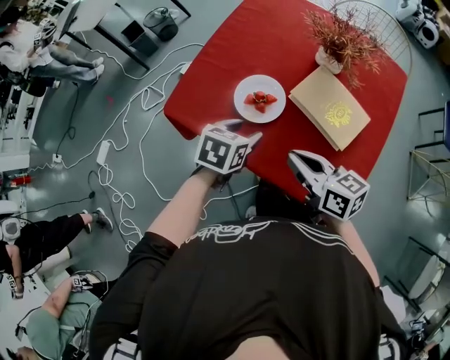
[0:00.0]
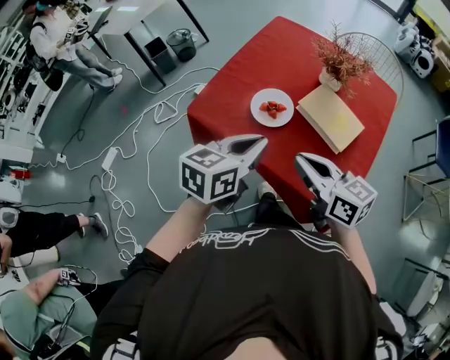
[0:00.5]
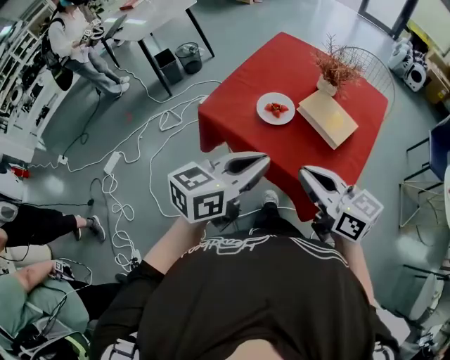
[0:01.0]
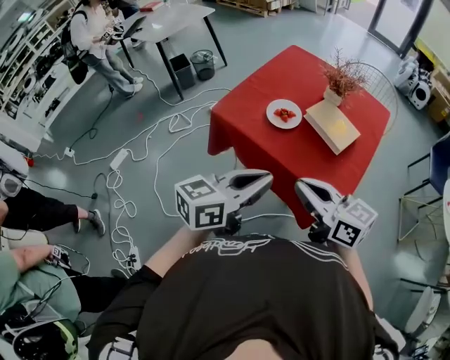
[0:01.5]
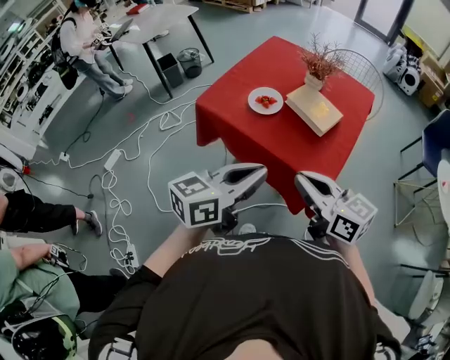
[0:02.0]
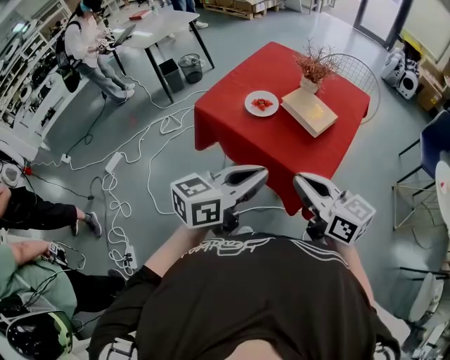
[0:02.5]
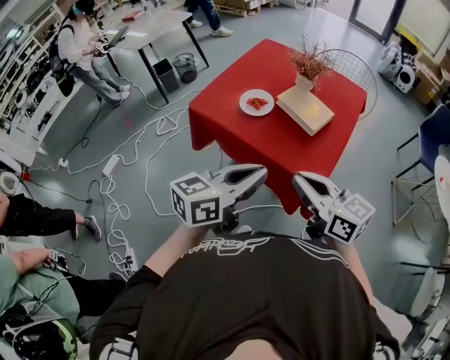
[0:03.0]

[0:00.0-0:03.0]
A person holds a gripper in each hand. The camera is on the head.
0:00.0 to 0:01.5: The two grippers go approximately 30 cm backward and upward. The left gripper points its fingers some 40 degrees further upward, and closes.
0:01.5 to 0:03.0: The grippers both shift to the right by roughly 10 cm.

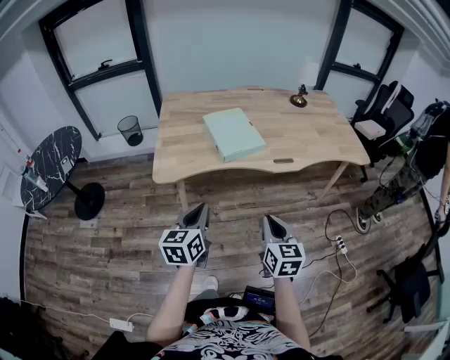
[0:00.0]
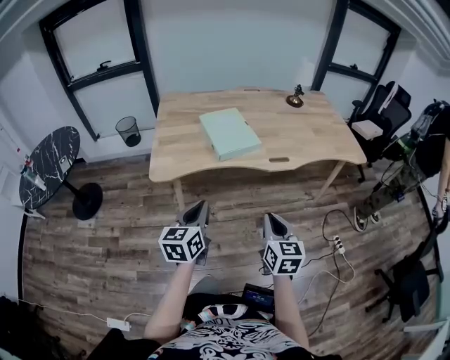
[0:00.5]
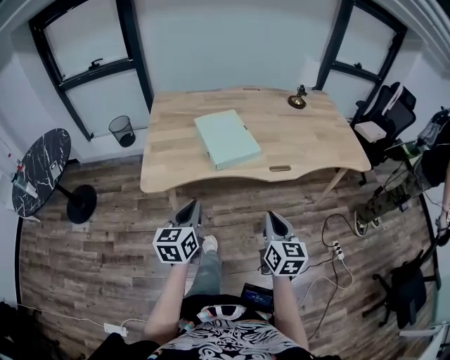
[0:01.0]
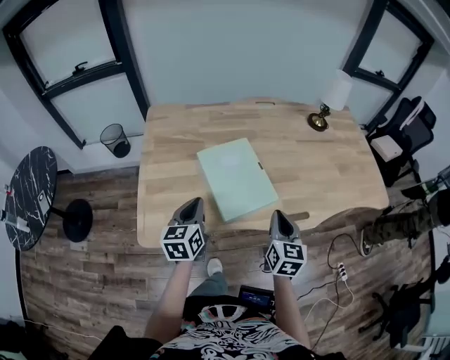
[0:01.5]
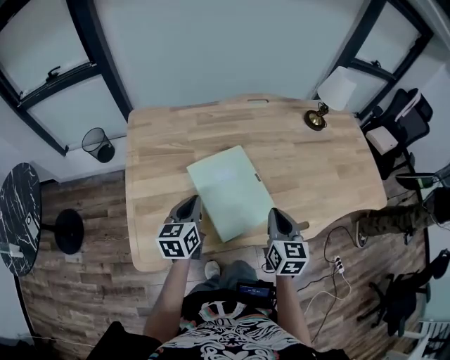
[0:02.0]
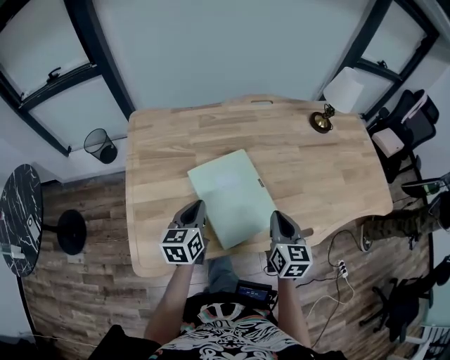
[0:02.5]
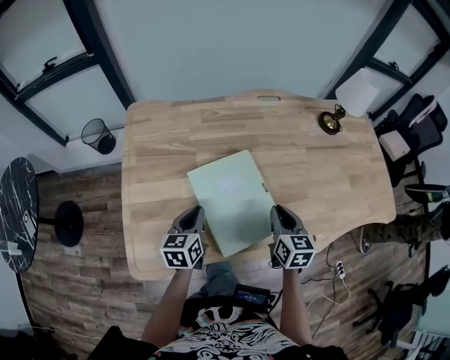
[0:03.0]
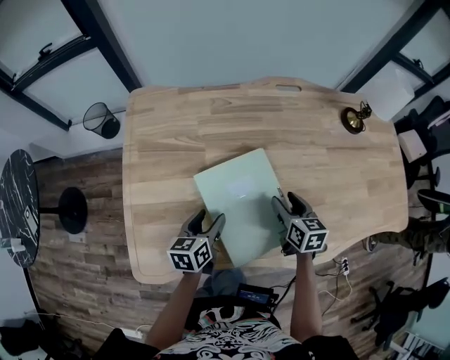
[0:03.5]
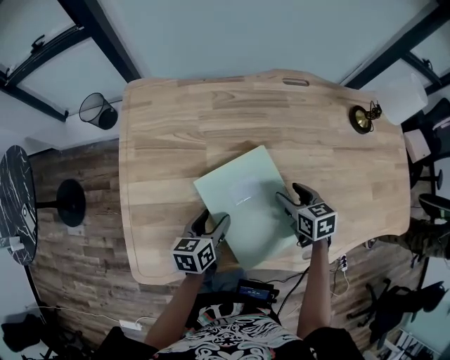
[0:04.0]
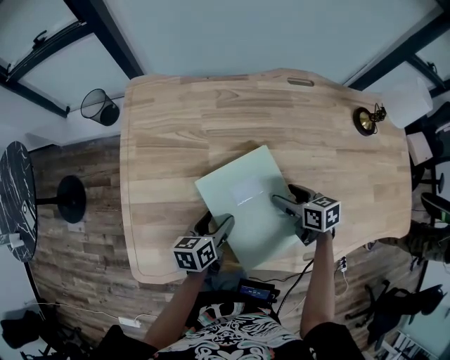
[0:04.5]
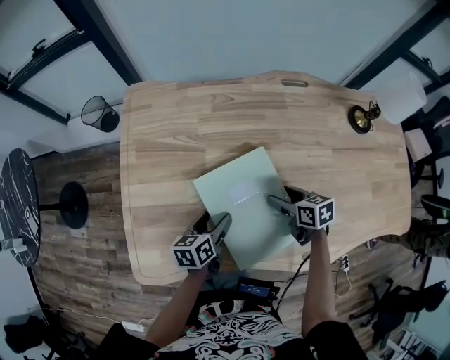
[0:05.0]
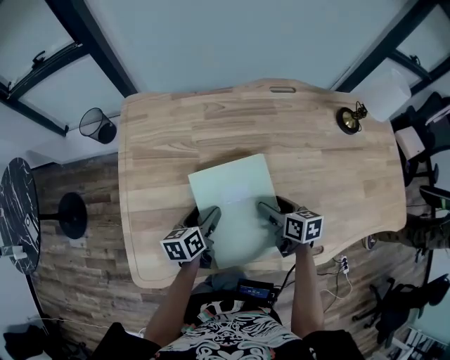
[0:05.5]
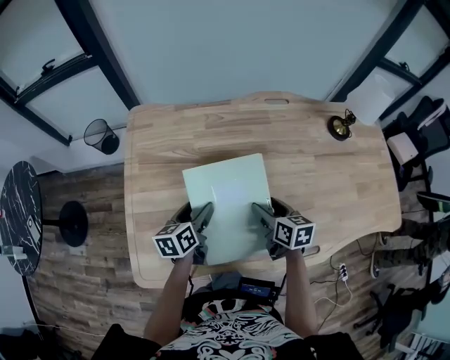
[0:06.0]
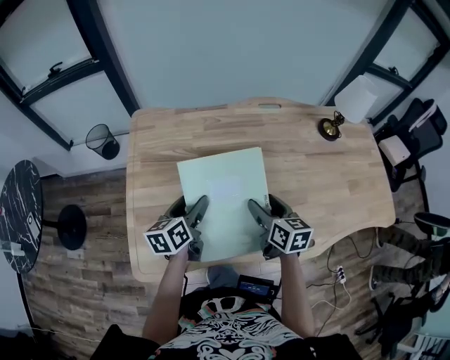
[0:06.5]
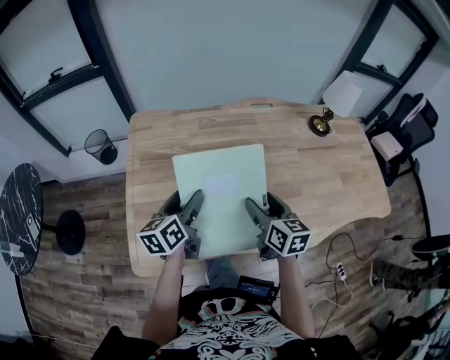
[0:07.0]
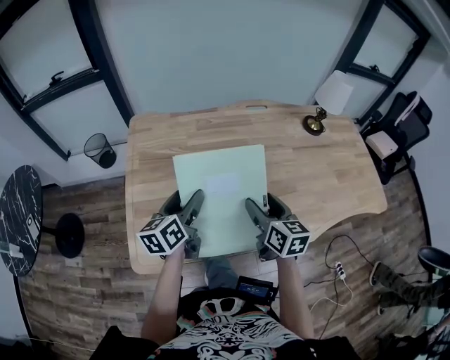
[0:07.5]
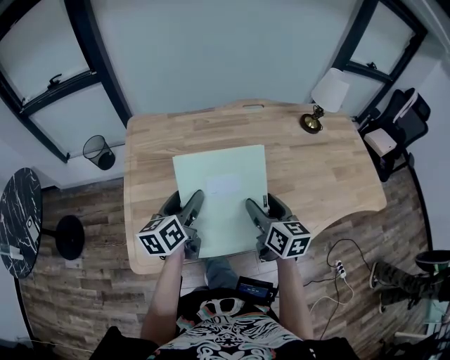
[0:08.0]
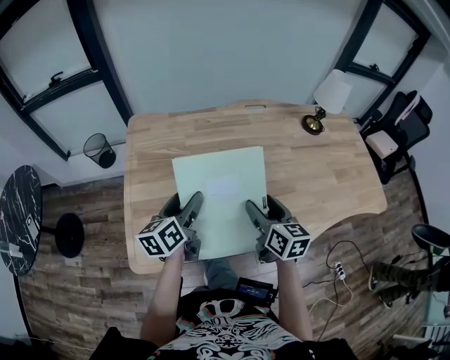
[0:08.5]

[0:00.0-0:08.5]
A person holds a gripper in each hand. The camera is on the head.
0:00.0 to 0:02.0: The two grippers travel together, forward, approximately 40 cm.
0:02.0 to 0:04.0: The left gripper is displaced downward by about 15 cm, turns by about 20 degrees, and opens. The right gripper heads forward and downward, covering about 20 cm, changes its angle by roughly 40 degrees, and opens.
0:04.0 to 0:06.5: The left gripper shifts roughly 10 cm upward; the right gripper heads upward, backward and to the left, covering about 15 cm, and rotates some 20 degrees.
0:06.5 to 0:08.5: The right gripper moves backward and upward, approximately 10 cm; the left gripper travels upward and backward by approximately 10 cm.

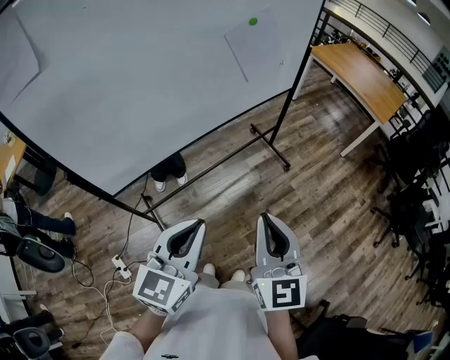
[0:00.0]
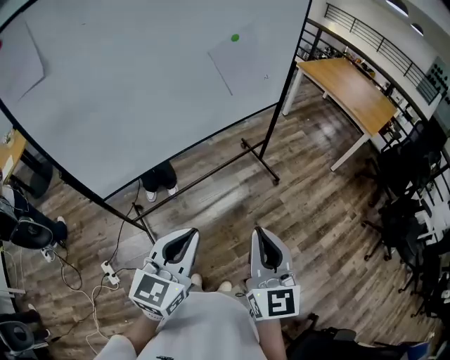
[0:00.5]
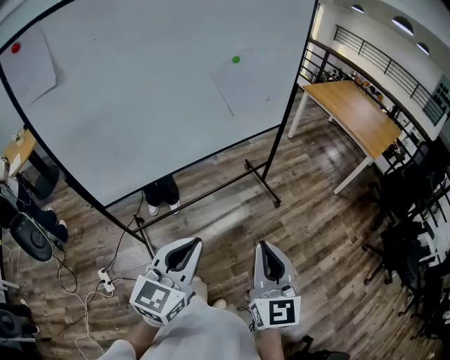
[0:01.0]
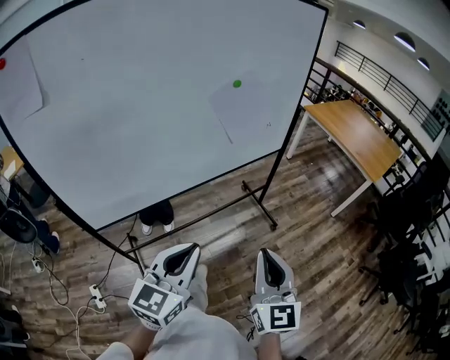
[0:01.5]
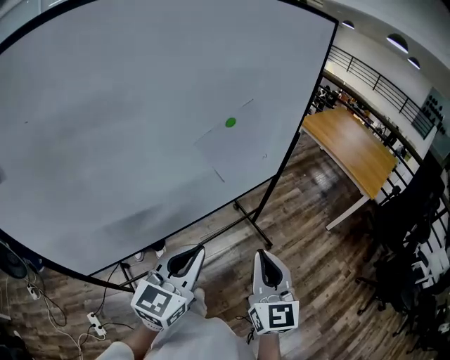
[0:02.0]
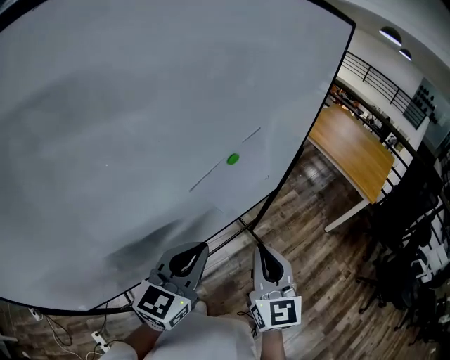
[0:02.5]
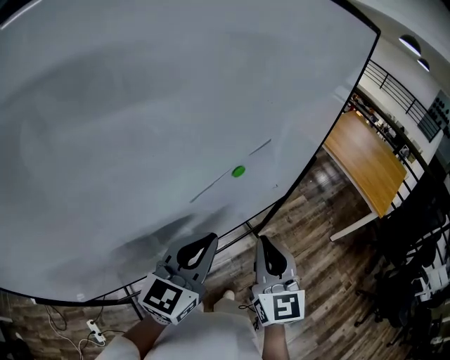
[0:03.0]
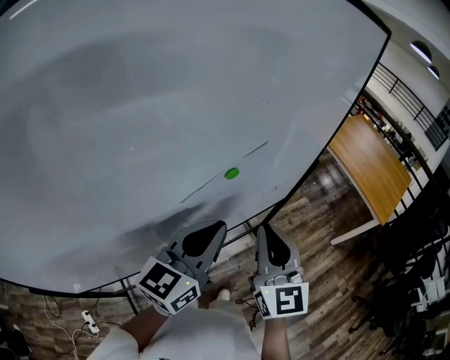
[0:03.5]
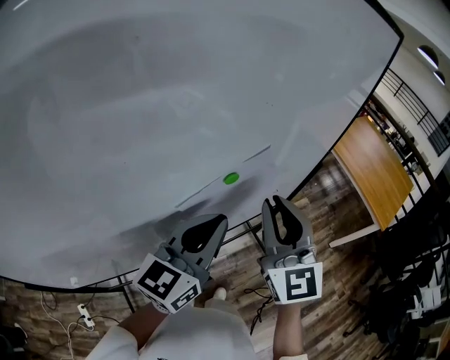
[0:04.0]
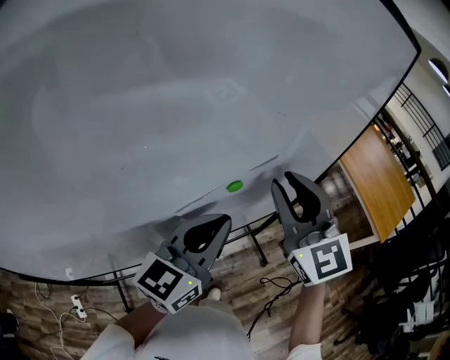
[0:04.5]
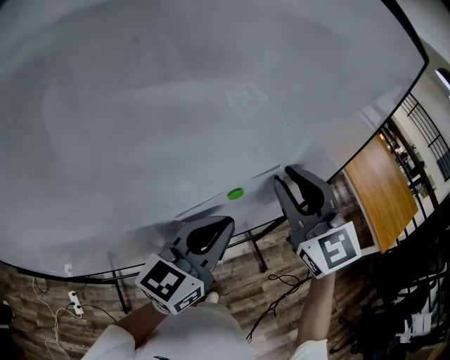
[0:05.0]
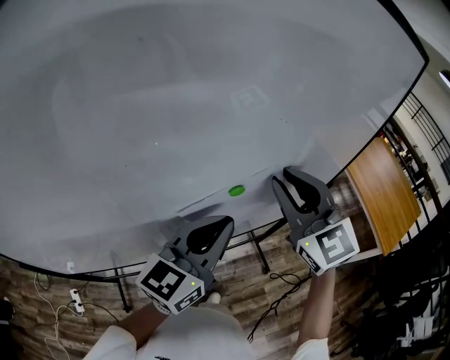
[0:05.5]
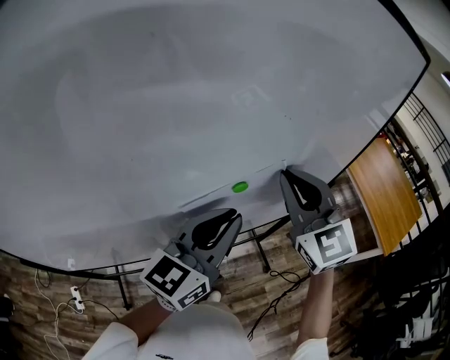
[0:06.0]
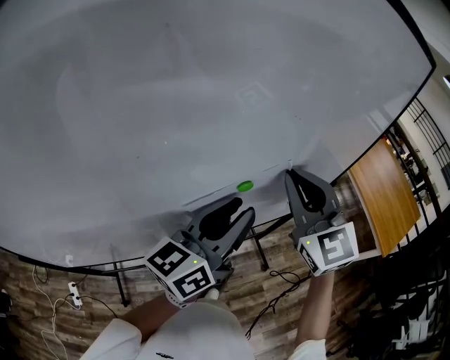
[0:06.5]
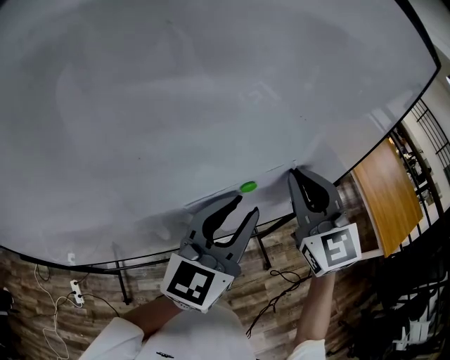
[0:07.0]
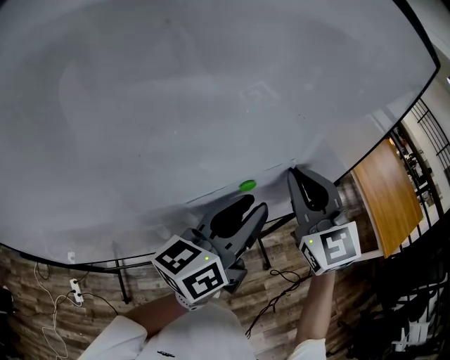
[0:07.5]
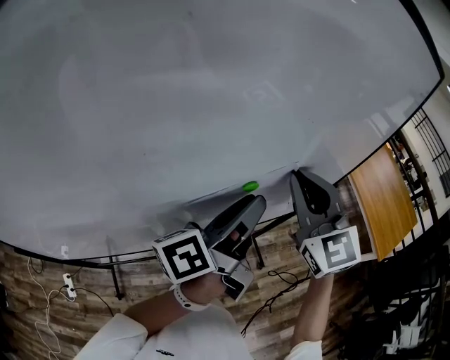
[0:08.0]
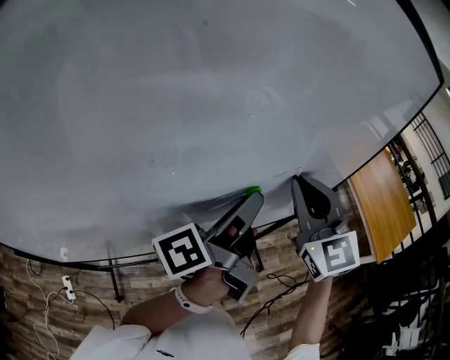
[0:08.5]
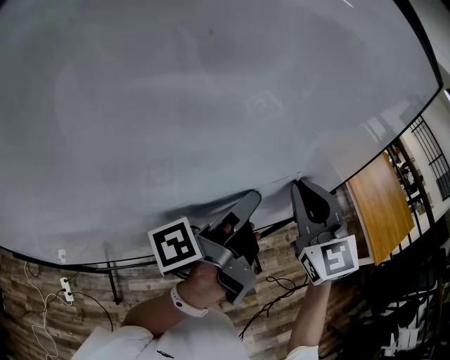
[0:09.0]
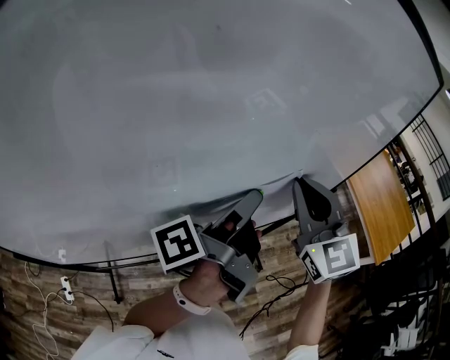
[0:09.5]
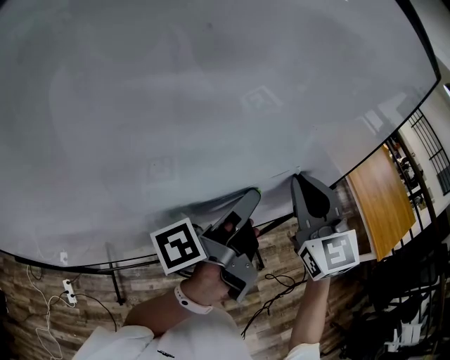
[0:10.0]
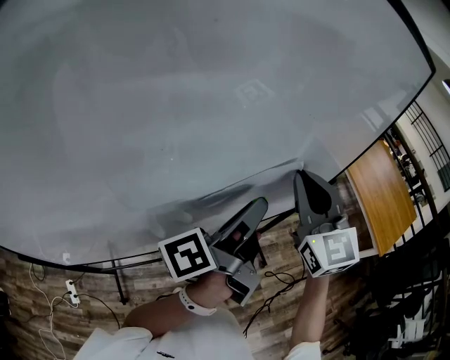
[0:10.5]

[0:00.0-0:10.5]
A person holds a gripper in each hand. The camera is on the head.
0:00.0 to 0:02.0: Both grippers move forward, roughly 25 cm.
0:02.0 to 0:04.0: The two grippers go roughly 25 cm forward.
0:04.0 to 0:06.5: The right gripper heads forward, covering some 10 cm; the left gripper swivels about 20 degrees, and opens.
0:06.5 to 0:08.5: The left gripper rotates around the line of its fingers by roughly 50 degrees, counterclockwise from behind.
0:08.5 to 0:10.5: The grippers move only a little.

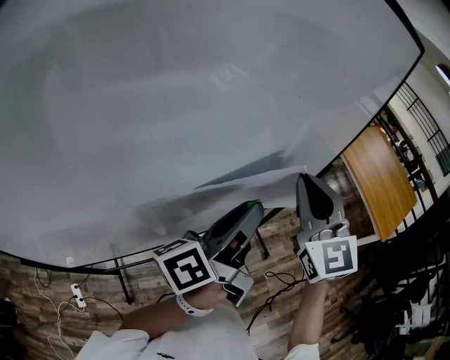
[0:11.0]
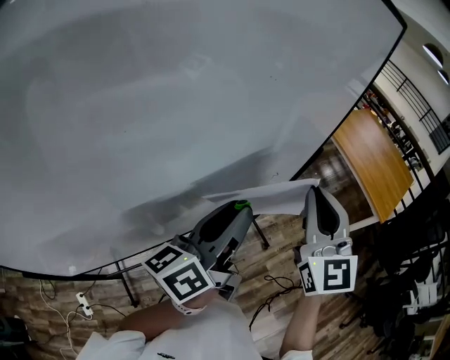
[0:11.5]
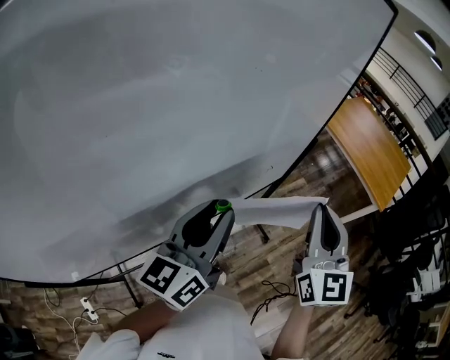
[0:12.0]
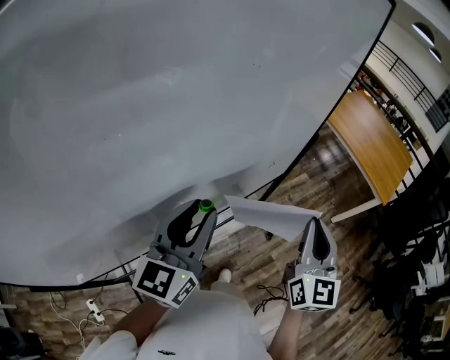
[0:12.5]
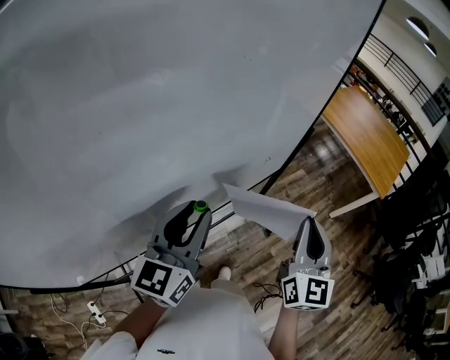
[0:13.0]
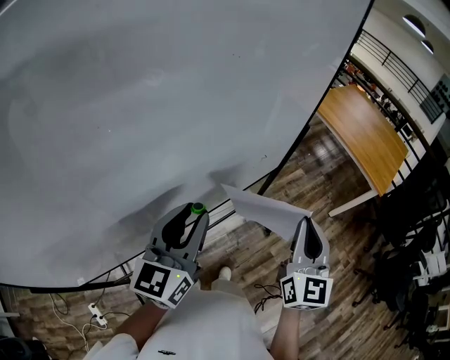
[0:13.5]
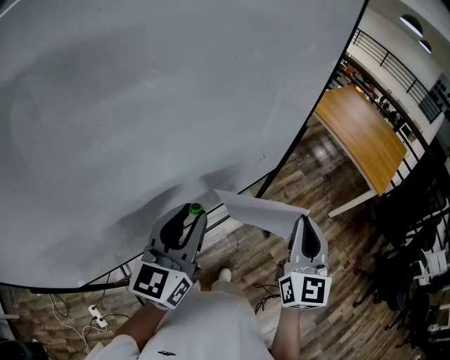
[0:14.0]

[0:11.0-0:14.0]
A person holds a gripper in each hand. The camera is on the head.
0:11.0 to 0:12.5: The right gripper heads to the right, downward and backward, covering about 15 cm, and rotates roughly 30 degrees, while the left gripper shifts by about 5 cm, and rolls clockwise, seen from behind, by about 60 degrees.
0:12.5 to 0:14.0: There are only small adjustments of the grippers.

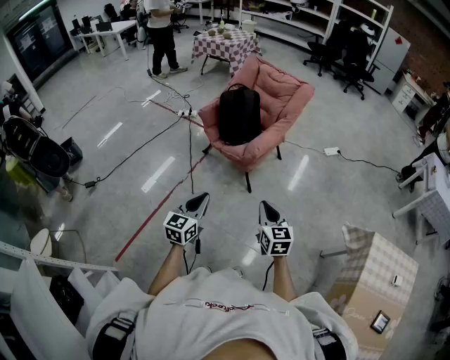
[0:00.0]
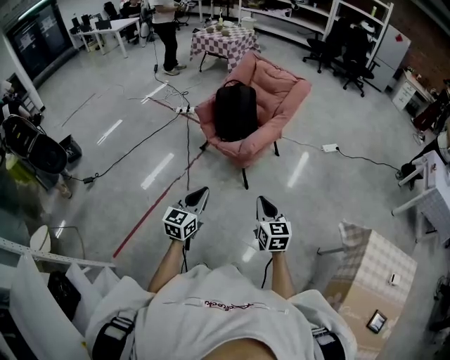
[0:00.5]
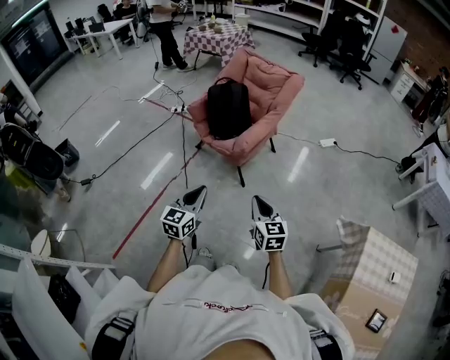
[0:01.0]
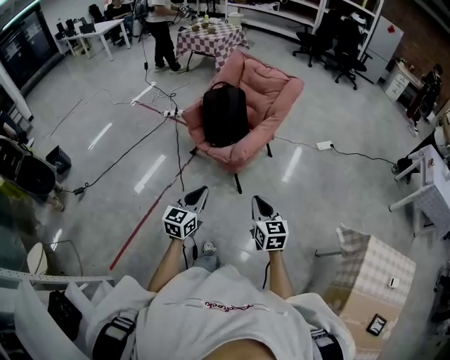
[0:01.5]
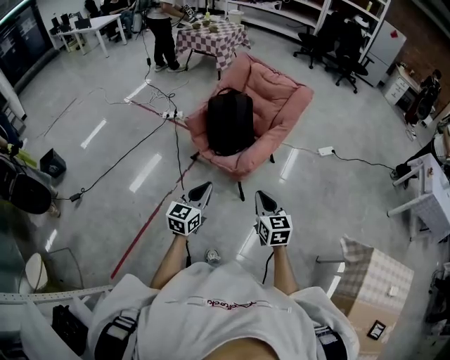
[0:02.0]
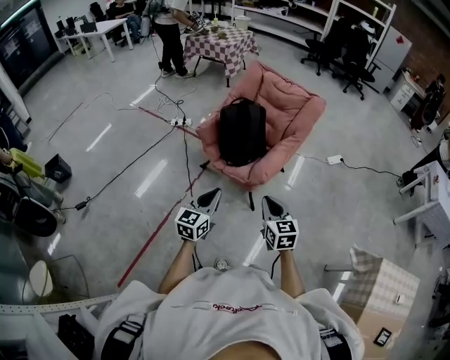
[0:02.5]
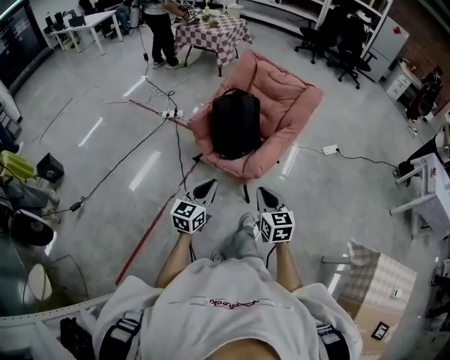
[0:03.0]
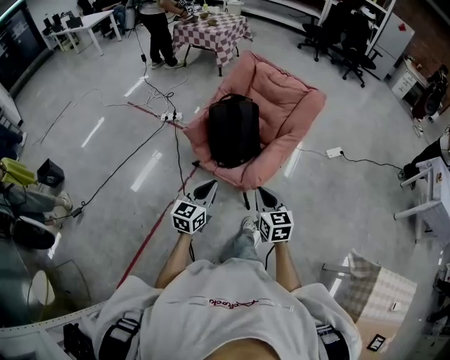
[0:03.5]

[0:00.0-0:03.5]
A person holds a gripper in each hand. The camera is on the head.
0:00.0 to 0:02.0: The grippers both shift forward by about 20 cm.
0:02.0 to 0:03.5: Both grippers travel together forward, about 15 cm.
